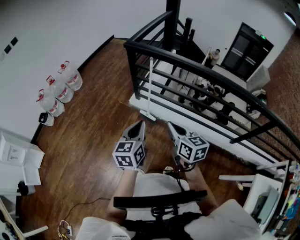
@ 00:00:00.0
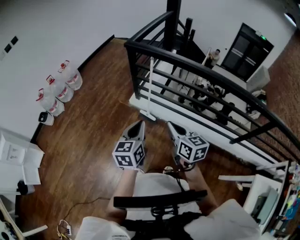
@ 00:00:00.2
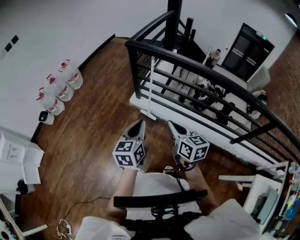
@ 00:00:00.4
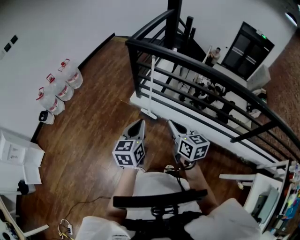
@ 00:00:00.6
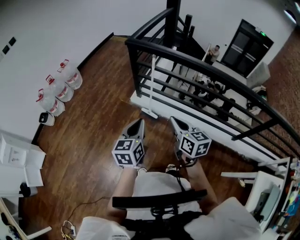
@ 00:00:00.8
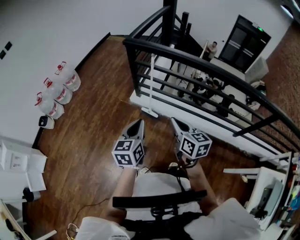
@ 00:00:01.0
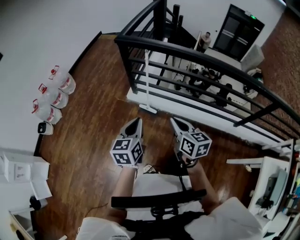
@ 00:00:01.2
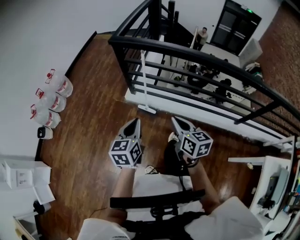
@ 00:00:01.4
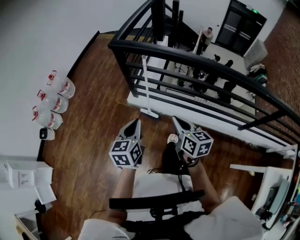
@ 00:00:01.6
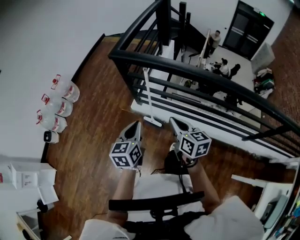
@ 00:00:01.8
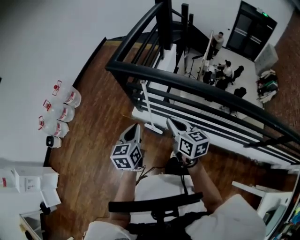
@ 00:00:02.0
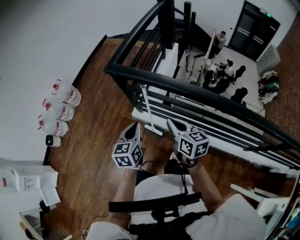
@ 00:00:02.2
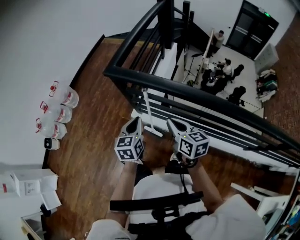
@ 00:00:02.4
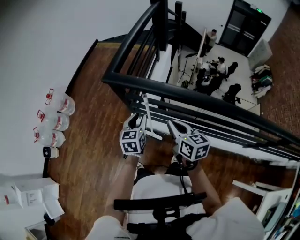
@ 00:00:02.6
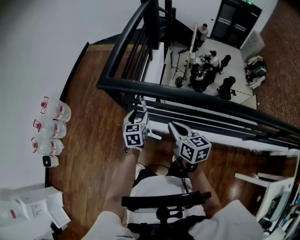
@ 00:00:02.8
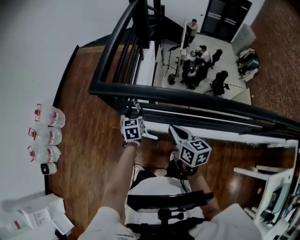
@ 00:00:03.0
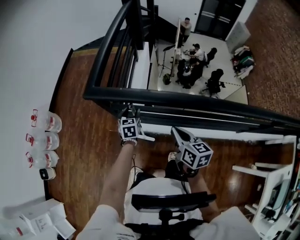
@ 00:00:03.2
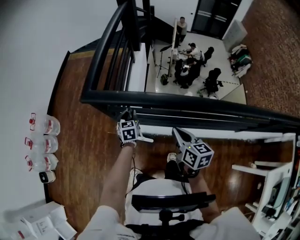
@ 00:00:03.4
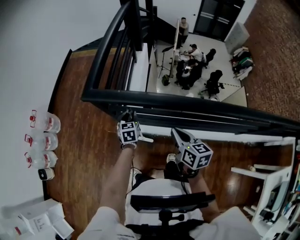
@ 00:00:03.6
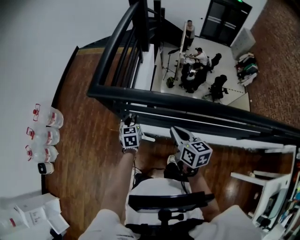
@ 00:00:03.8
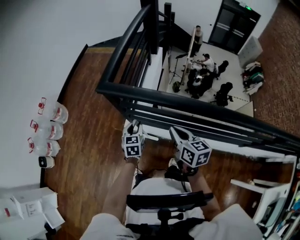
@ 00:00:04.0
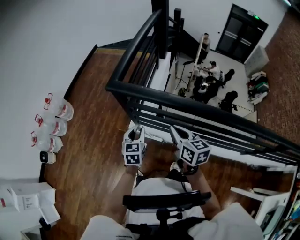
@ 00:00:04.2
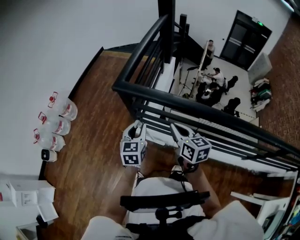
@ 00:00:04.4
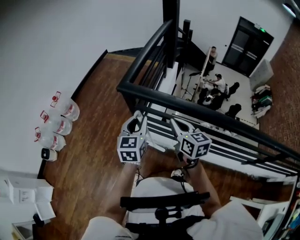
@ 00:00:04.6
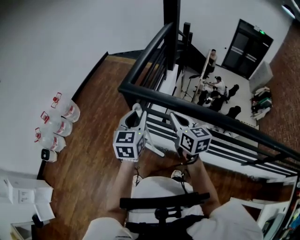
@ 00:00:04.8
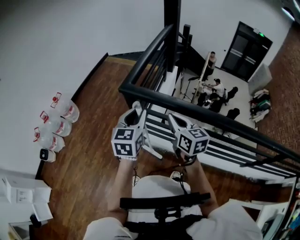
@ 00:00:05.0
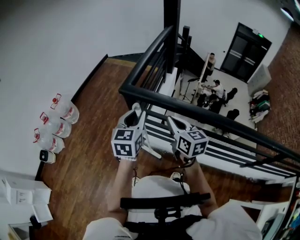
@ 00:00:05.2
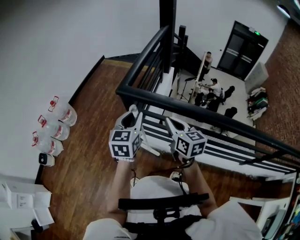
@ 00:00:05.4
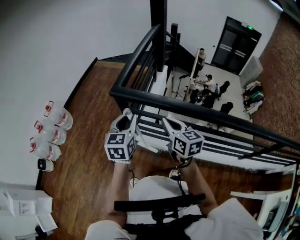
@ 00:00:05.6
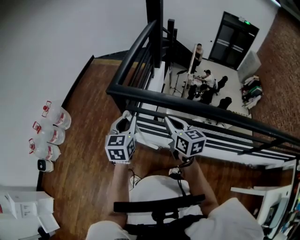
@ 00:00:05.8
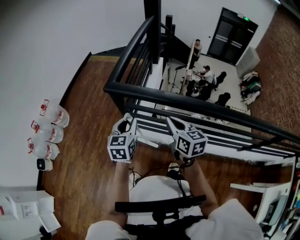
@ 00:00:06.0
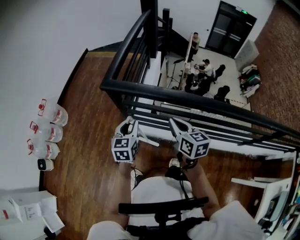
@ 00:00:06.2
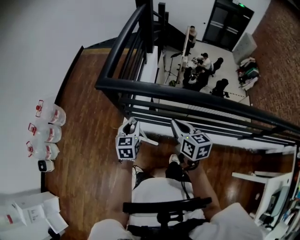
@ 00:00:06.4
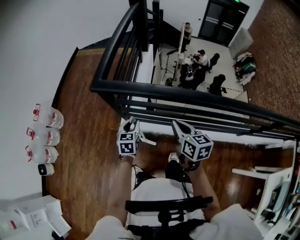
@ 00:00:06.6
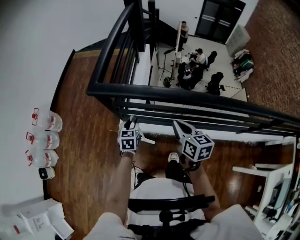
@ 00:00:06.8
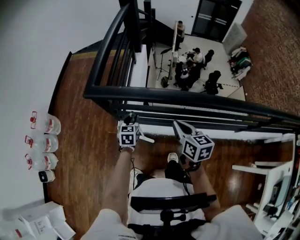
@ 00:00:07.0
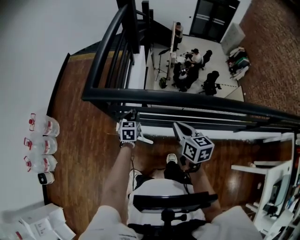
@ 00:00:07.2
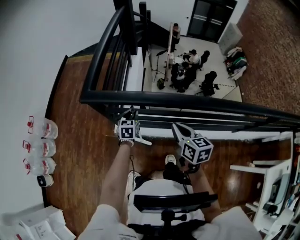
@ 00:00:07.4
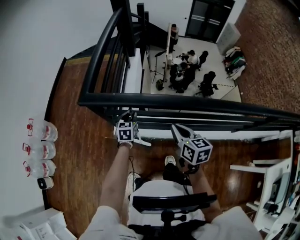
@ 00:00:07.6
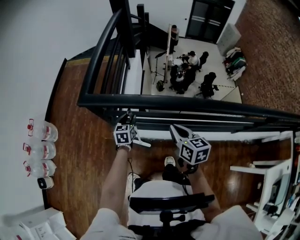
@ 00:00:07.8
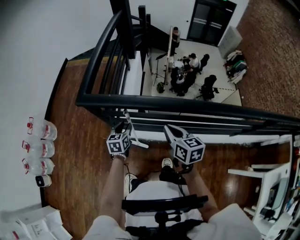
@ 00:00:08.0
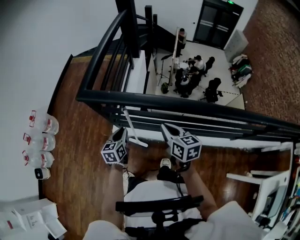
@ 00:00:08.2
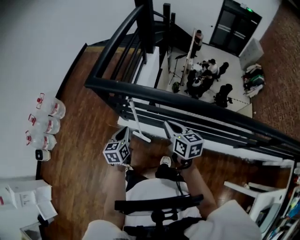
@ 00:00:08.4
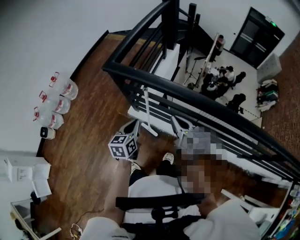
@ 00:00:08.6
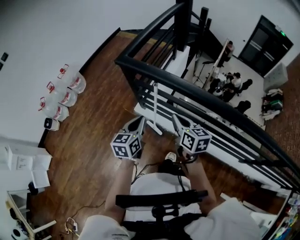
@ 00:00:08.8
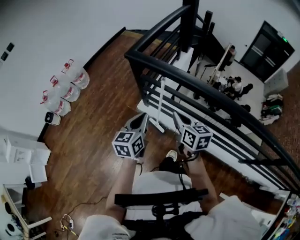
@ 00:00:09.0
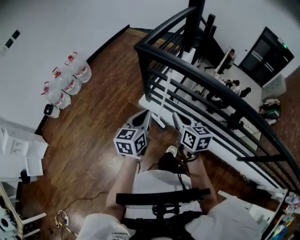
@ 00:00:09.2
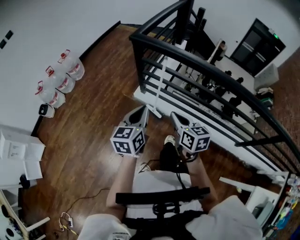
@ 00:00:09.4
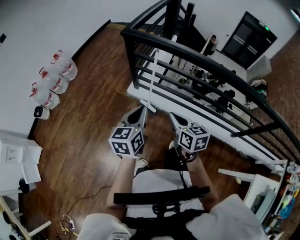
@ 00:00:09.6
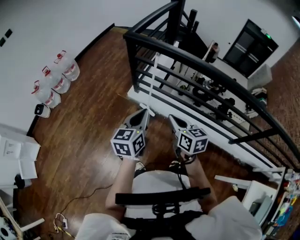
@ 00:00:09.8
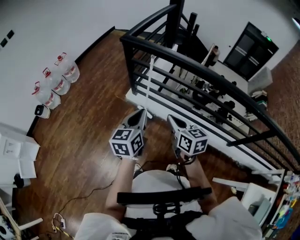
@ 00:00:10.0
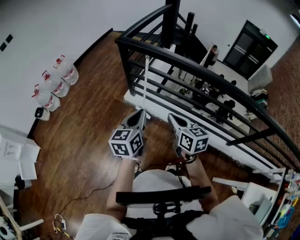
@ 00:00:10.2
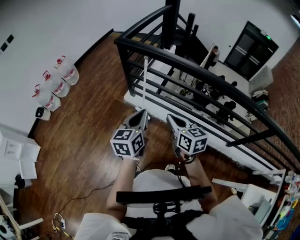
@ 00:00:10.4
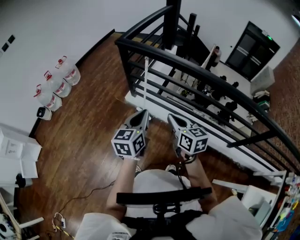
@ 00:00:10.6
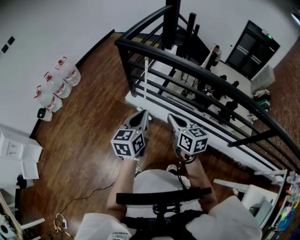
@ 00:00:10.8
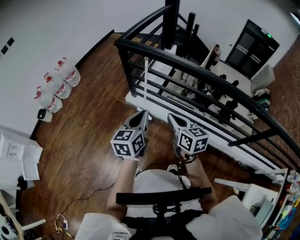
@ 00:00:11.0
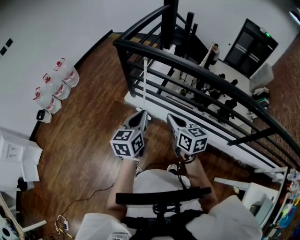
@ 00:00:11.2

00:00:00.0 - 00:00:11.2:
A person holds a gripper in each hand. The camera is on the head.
00:00:00.0 - 00:00:01.6: The grippers both shift forward and downward by some 15 cm.
00:00:01.6 - 00:00:03.2: The left gripper travels forward and downward by about 50 cm, and opens up; the right gripper goes approximately 25 cm forward.
00:00:03.2 - 00:00:04.8: The right gripper heads upward and to the left, covering approximately 15 cm, and changes its angle by about 20 degrees. The left gripper moves upward and backward, about 30 cm, rotates about 20 degrees, and closes its fingers.
00:00:04.8 - 00:00:06.4: The right gripper moves downward and to the right, roughly 10 cm; the left gripper is displaced downward by approximately 20 cm.
00:00:06.4 - 00:00:08.0: The left gripper is displaced downward, forward and to the right by some 10 cm. Meanwhile the right gripper moves to the right, roughly 5 cm.
00:00:08.0 - 00:00:09.6: The left gripper heads backward and upward, covering some 40 cm, changes its angle by about 20 degrees, and closes, while the right gripper shifts some 30 cm backward and to the left.
00:00:09.6 - 00:00:11.2: The two grippers go approximately 10 cm to the right.

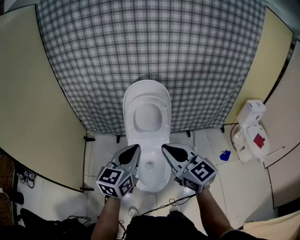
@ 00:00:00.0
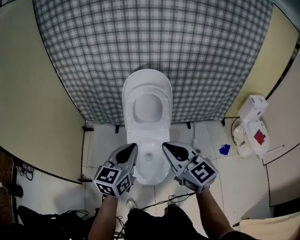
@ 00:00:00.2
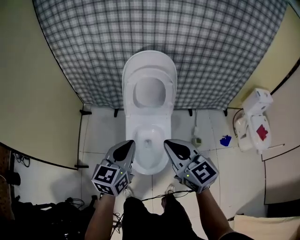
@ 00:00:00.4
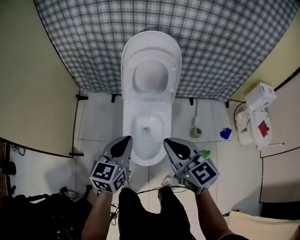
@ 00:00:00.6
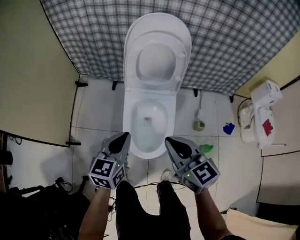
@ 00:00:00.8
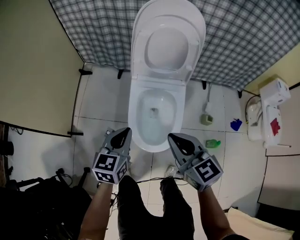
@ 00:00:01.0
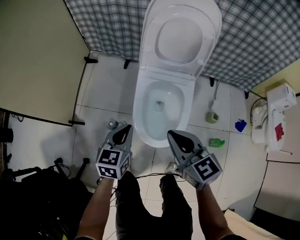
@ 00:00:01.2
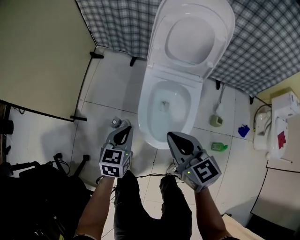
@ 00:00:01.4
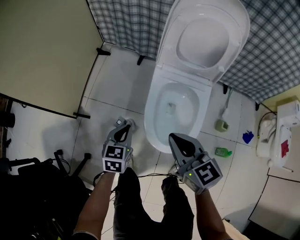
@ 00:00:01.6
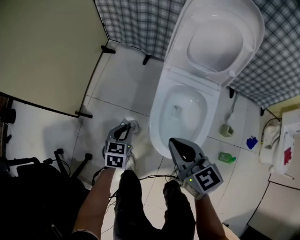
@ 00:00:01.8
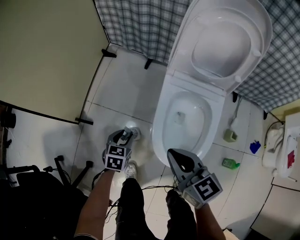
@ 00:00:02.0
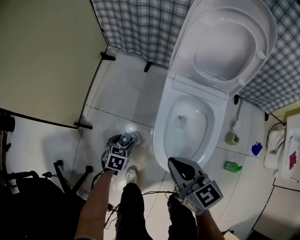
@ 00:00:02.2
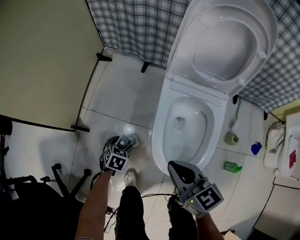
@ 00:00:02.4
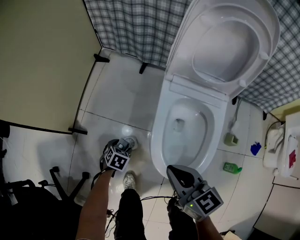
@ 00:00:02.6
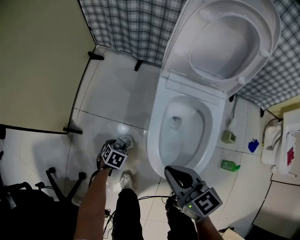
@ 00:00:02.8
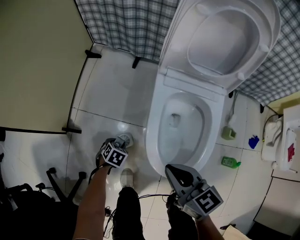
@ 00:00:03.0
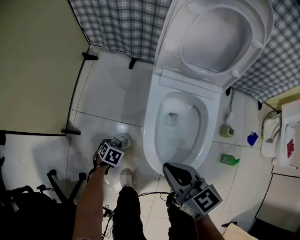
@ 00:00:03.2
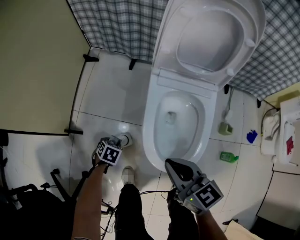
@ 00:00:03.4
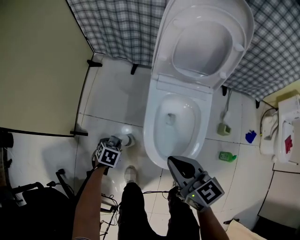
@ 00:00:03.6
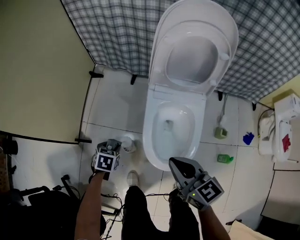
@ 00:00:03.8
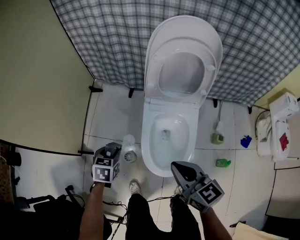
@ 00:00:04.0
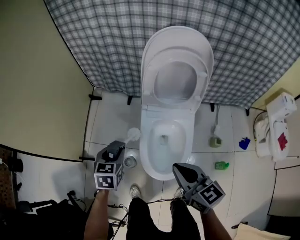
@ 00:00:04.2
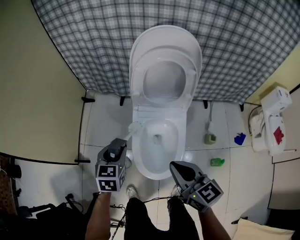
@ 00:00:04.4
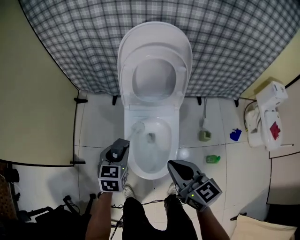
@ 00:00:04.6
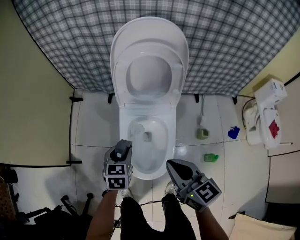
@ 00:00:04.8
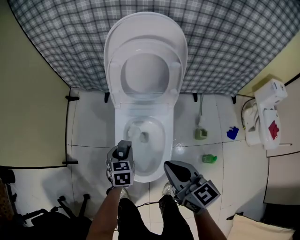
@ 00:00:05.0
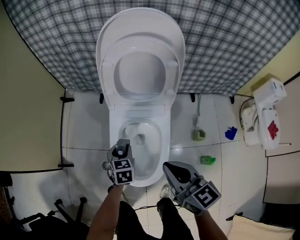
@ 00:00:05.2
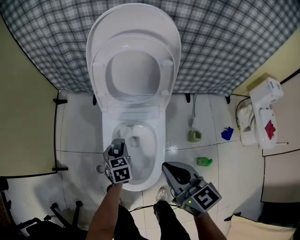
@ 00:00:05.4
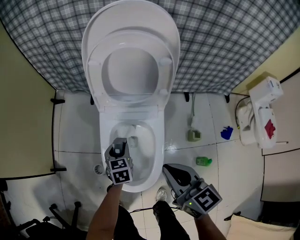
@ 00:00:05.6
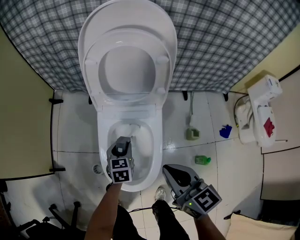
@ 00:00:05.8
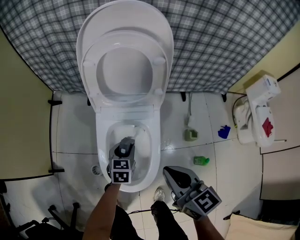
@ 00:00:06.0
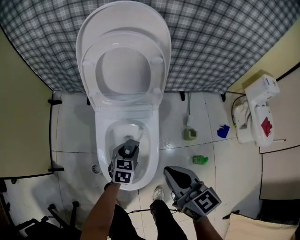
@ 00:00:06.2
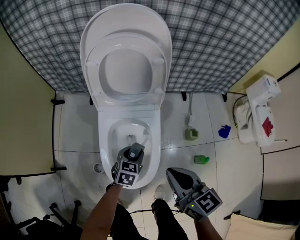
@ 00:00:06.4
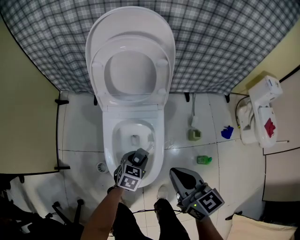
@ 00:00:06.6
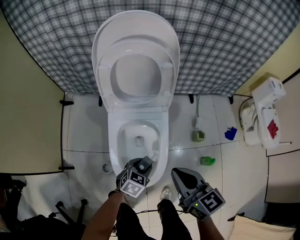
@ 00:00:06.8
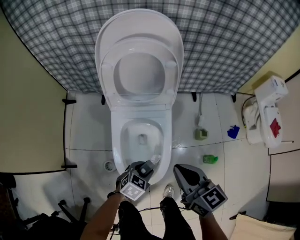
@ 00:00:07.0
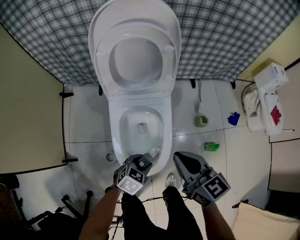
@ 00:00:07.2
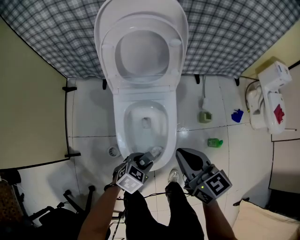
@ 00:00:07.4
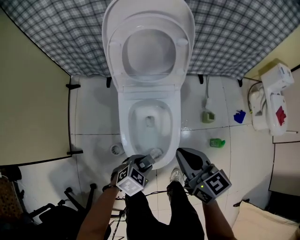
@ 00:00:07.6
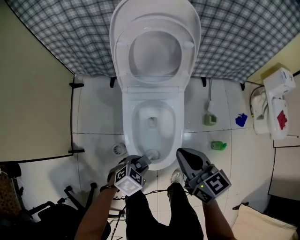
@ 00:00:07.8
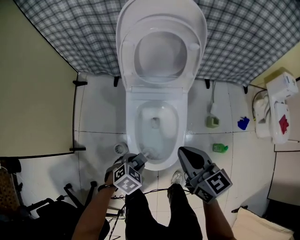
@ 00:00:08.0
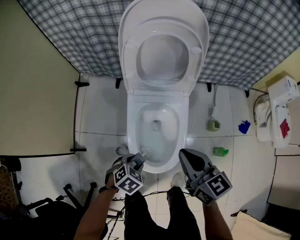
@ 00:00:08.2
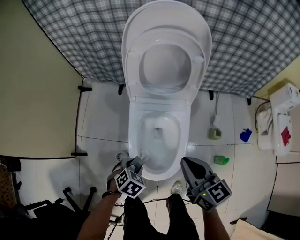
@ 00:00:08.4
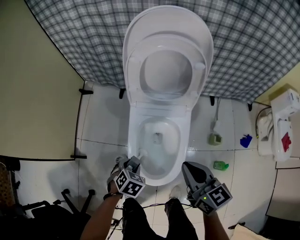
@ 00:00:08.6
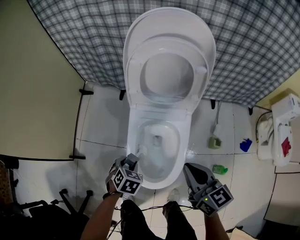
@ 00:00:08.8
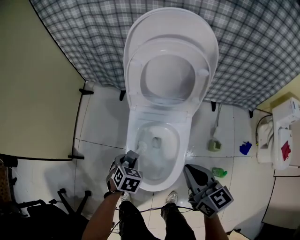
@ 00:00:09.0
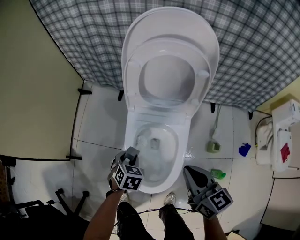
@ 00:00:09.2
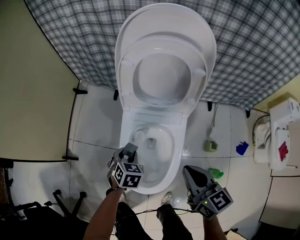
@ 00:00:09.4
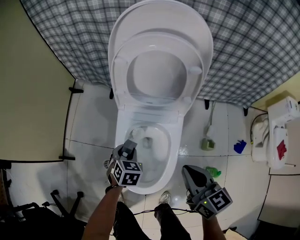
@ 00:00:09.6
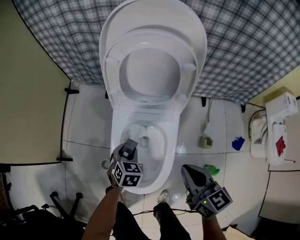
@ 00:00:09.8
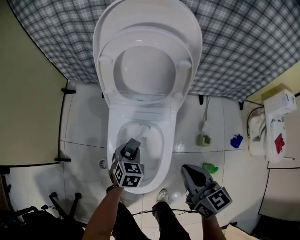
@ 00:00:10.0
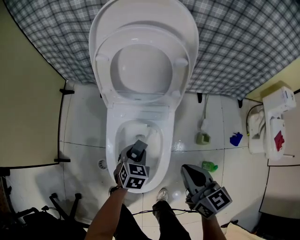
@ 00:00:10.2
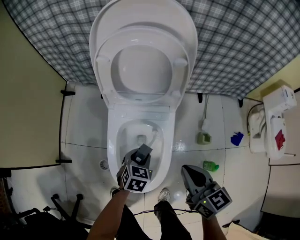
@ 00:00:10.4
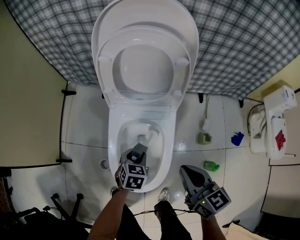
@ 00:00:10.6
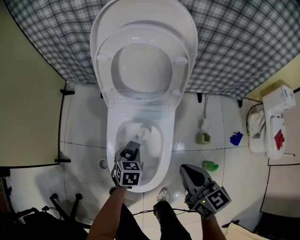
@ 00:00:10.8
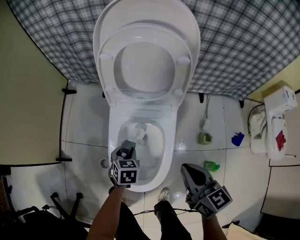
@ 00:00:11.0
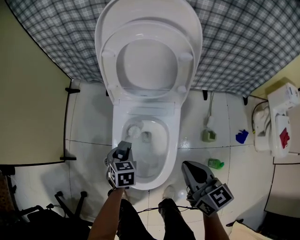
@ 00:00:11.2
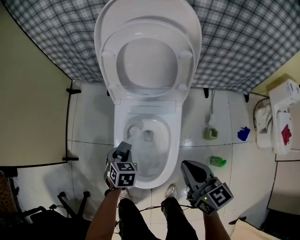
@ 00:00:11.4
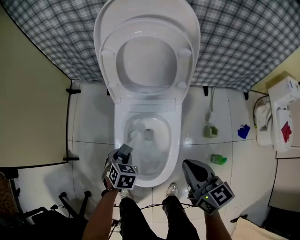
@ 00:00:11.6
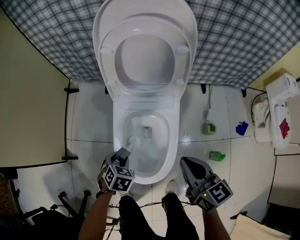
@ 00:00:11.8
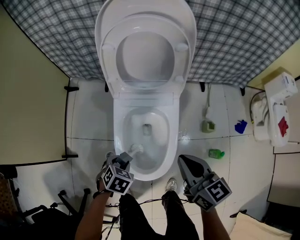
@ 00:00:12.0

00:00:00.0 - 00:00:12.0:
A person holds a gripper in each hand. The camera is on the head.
00:00:00.0 - 00:00:01.6: Both grippers move downward, approximately 40 cm. The left gripper swivels some 40 degrees. The right gripper turns by some 20 degrees.
00:00:01.6 - 00:00:03.0: The right gripper goes some 10 cm downward. The left gripper travels downward by roughly 30 cm, tilts its fingers roughly 40 degrees downward, and opens up.
00:00:03.0 - 00:00:04.4: The left gripper travels upward by approximately 40 cm, and angles its fingers upward, by roughly 40 degrees; the right gripper heads upward, covering approximately 20 cm.
00:00:04.4 - 00:00:06.0: The left gripper goes approximately 25 cm to the right and downward; the right gripper shifts roughly 15 cm to the right and downward.
00:00:06.0 - 00:00:07.6: The left gripper is displaced backward by about 20 cm, and swivels roughly 40 degrees.
00:00:07.6 - 00:00:09.0: The right gripper changes place by approximately 5 cm. The left gripper shifts by about 15 cm, and rotates some 40 degrees.
00:00:09.0 - 00:00:10.4: The left gripper travels to the right by roughly 15 cm, while the right gripper moves to the right, about 5 cm.
00:00:10.4 - 00:00:12.0: The left gripper moves to the left and backward, some 15 cm, and turns by roughly 20 degrees.
